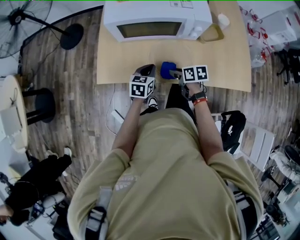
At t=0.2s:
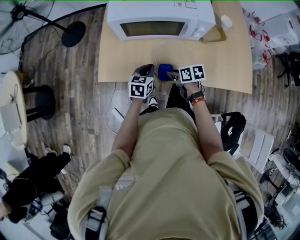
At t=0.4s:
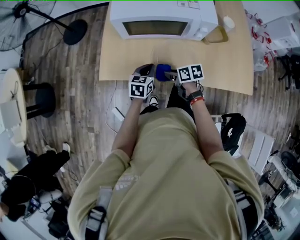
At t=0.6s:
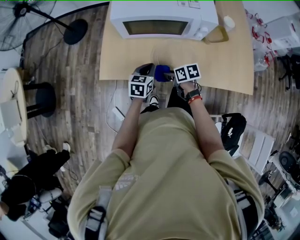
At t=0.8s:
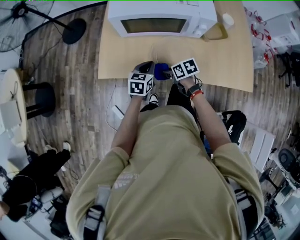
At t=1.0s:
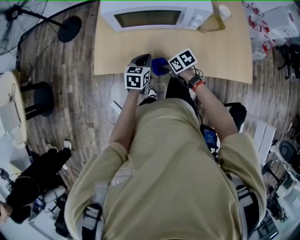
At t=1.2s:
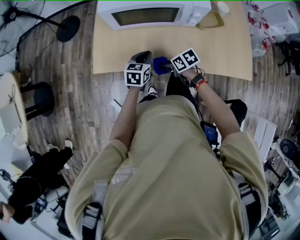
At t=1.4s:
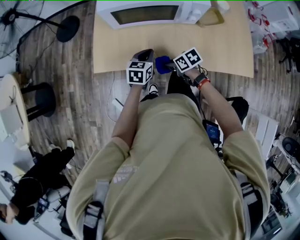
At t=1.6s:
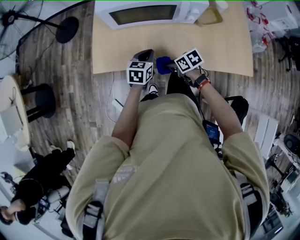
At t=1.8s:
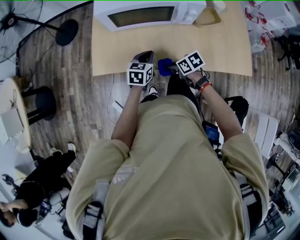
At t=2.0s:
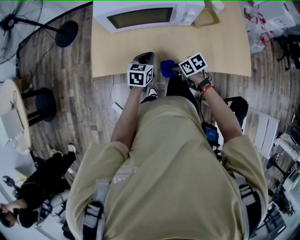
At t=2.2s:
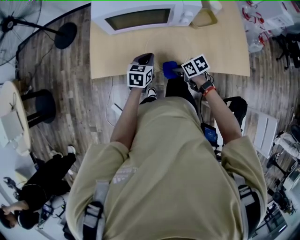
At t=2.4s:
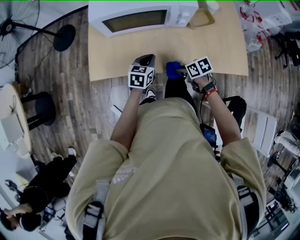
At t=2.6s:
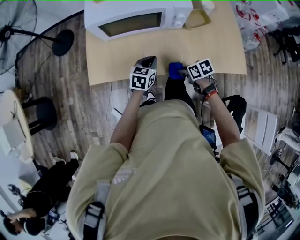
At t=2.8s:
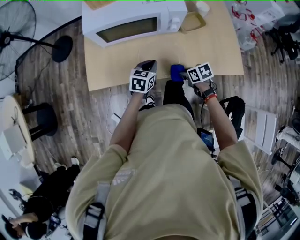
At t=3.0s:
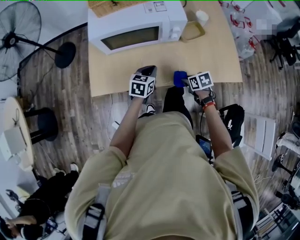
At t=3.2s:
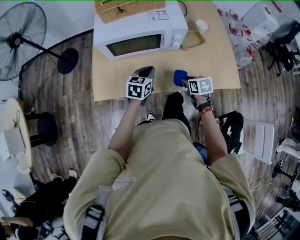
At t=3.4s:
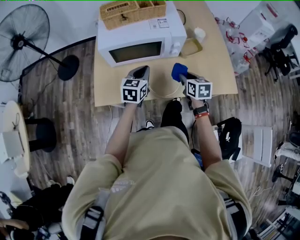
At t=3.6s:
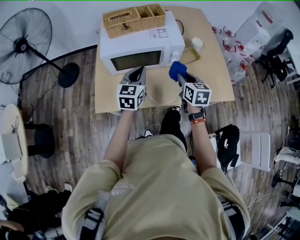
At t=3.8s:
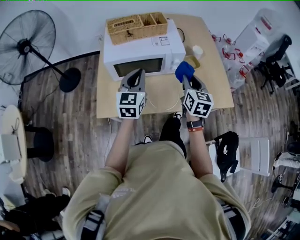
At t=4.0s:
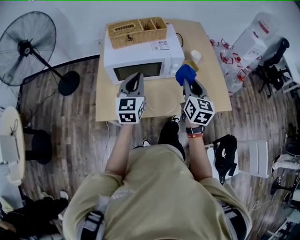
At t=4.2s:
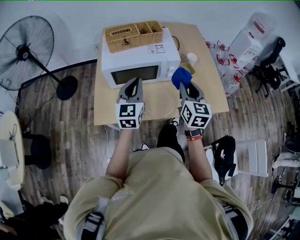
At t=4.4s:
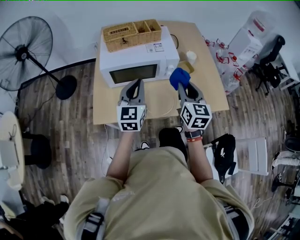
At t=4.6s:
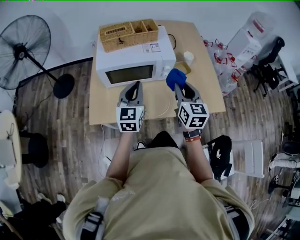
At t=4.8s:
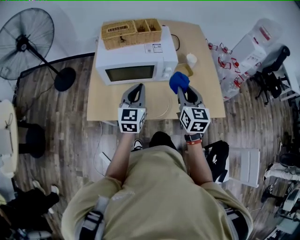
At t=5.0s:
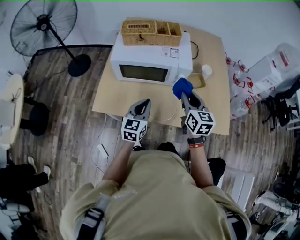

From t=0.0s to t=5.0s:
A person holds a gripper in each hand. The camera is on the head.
From t=0.0s to t=1.6s: The right gripper changes place by some 5 cm, and rotates about 20 degrees.
From t=1.6s to t=3.4s: Both grippers travel together upward, roughly 15 cm. The right gripper swivels roughly 50 degrees.
From t=3.4s to t=5.0s: The right gripper heads upward, covering about 15 cm, and turns by some 20 degrees. Meanwhile the left gripper is displaced backward by approximately 5 cm, and travels upward and back again, roughly 15 cm each way.

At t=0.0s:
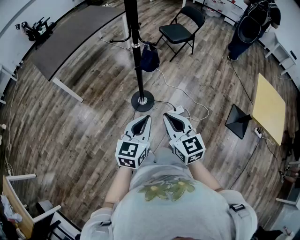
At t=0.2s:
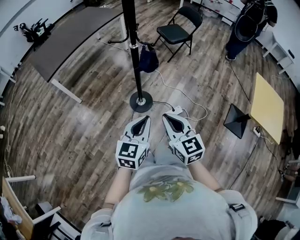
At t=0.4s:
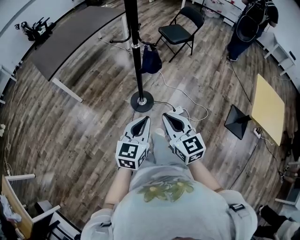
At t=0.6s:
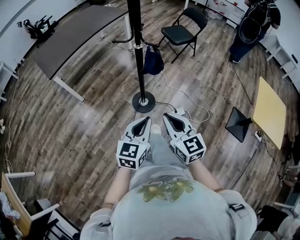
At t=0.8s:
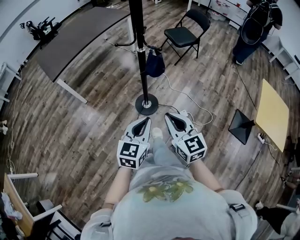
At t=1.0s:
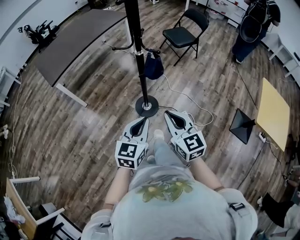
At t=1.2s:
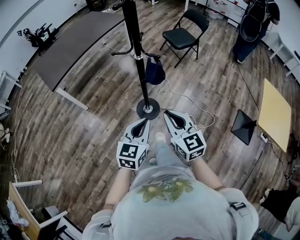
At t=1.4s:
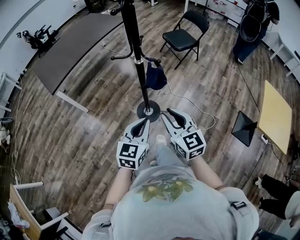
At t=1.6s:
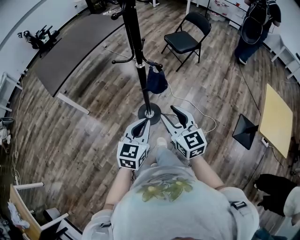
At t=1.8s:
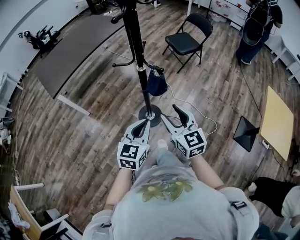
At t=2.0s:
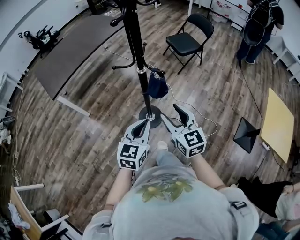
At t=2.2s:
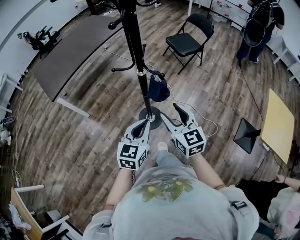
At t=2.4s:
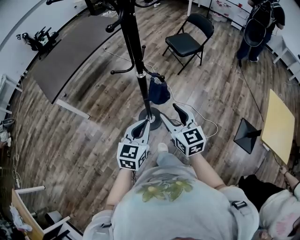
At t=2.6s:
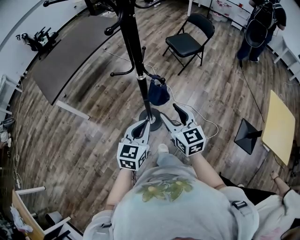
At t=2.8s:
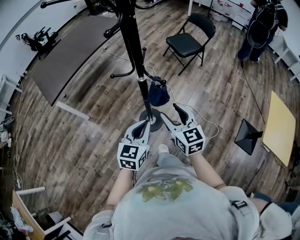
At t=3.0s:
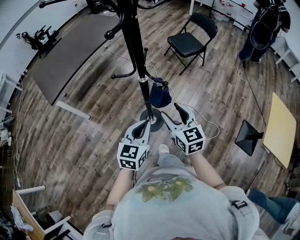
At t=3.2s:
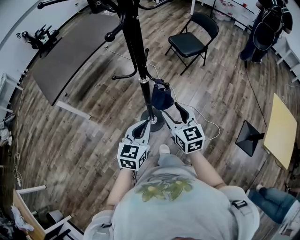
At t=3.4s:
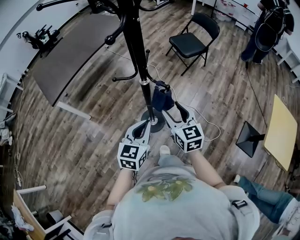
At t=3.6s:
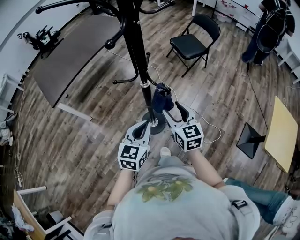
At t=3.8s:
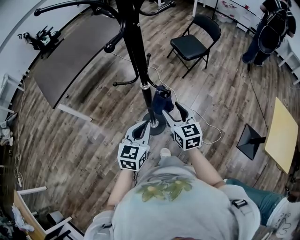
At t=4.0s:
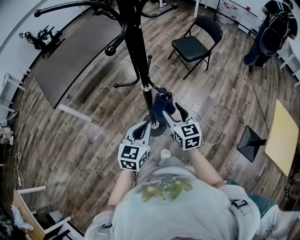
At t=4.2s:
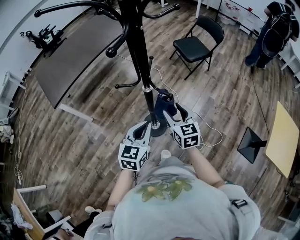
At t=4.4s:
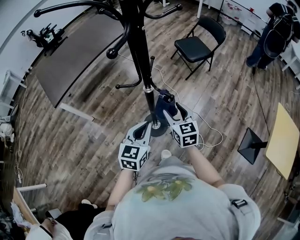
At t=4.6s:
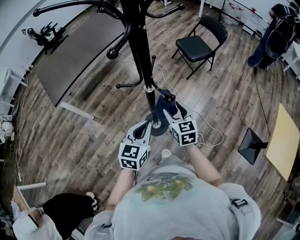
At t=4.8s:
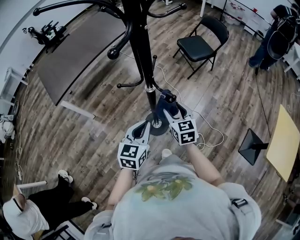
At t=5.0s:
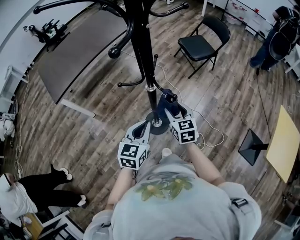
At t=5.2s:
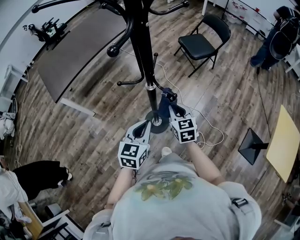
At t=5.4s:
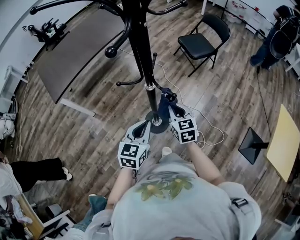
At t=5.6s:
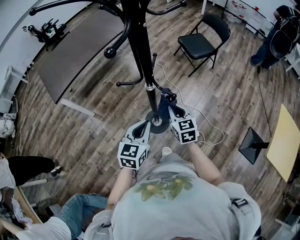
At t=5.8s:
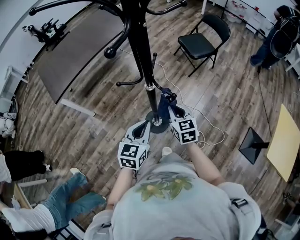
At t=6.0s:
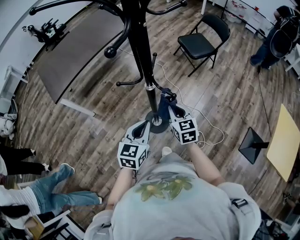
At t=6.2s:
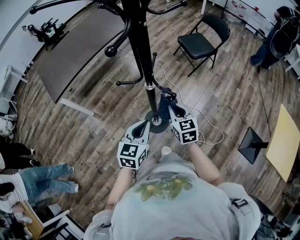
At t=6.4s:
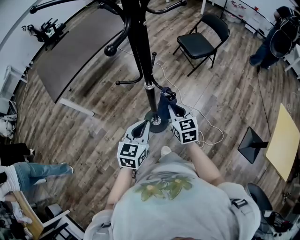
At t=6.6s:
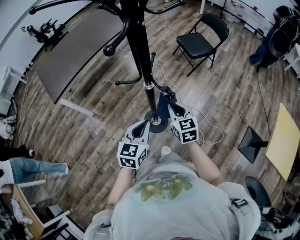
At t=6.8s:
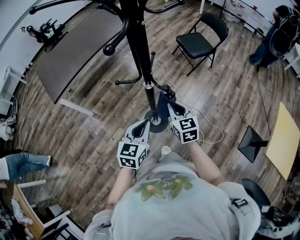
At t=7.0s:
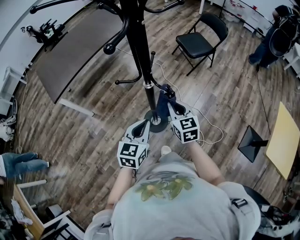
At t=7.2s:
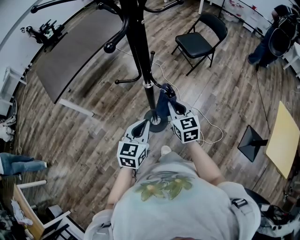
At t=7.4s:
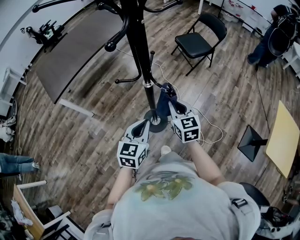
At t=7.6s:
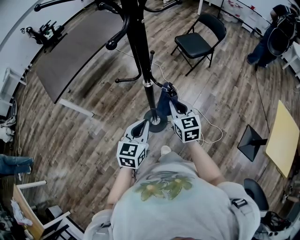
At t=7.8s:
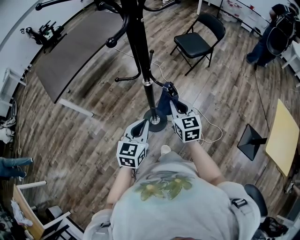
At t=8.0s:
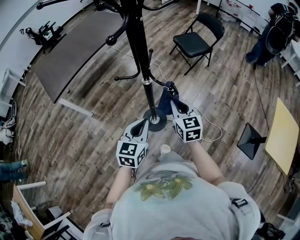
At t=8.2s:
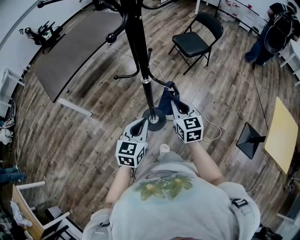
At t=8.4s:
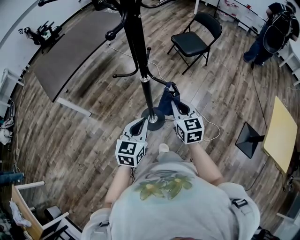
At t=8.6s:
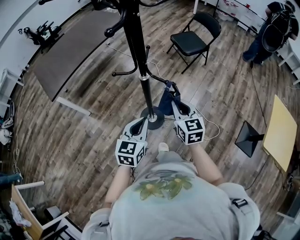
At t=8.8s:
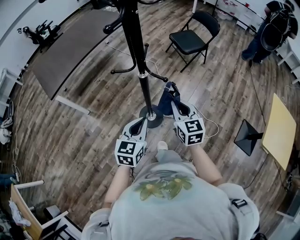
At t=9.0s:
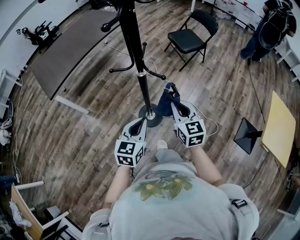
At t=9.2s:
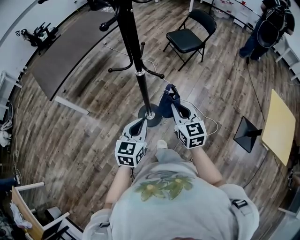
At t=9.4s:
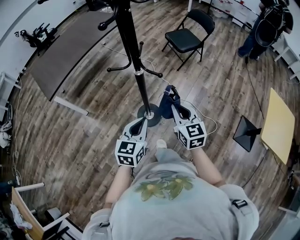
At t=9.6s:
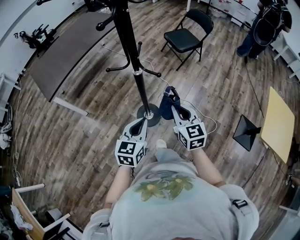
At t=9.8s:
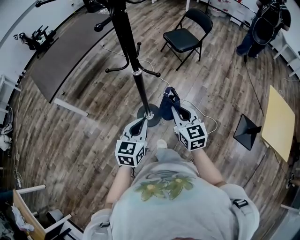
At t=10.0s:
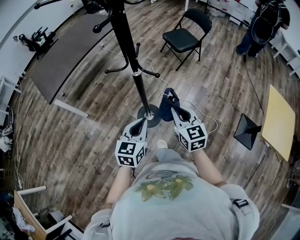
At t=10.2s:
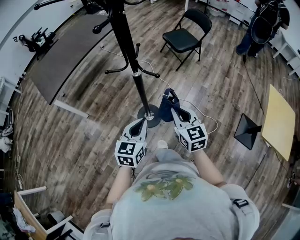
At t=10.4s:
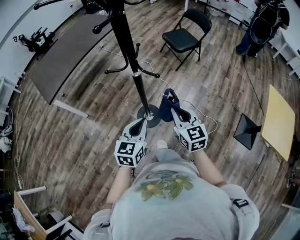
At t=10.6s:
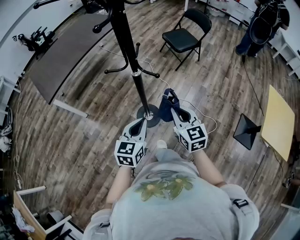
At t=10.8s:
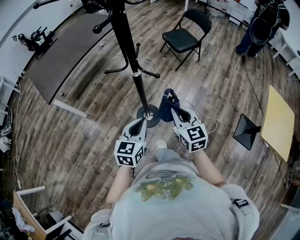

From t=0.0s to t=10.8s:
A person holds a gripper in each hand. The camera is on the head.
From t=0.0s to t=1.6s: Both grippers travel together forward, approximately 15 cm. The right gripper opens.
From t=1.6s to t=3.0s: The grippers both shift forward by about 10 cm.
From t=3.0s to t=4.6s: The right gripper is displaced forward and downward by about 10 cm; the left gripper heads forward, covering about 5 cm.
From t=4.6s to t=6.2s: The right gripper closes its fingers.
From t=6.2s to t=7.8s: There are only small adjustments of the grippers.
From t=7.8s to t=9.2s: The right gripper moves backward, roughly 10 cm. The left gripper shifts by approximately 5 cm.
From t=9.2s to t=10.8s: The grippers make only small movements.

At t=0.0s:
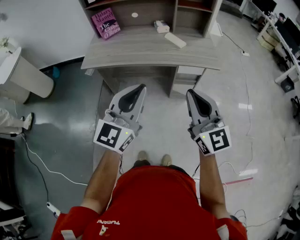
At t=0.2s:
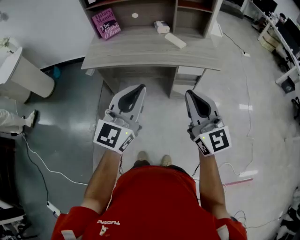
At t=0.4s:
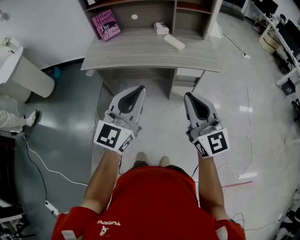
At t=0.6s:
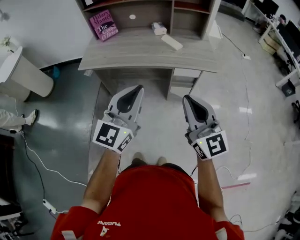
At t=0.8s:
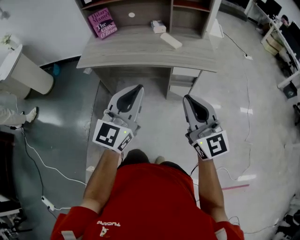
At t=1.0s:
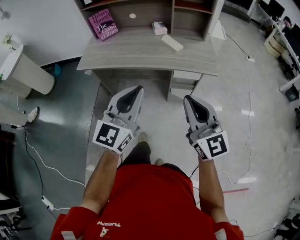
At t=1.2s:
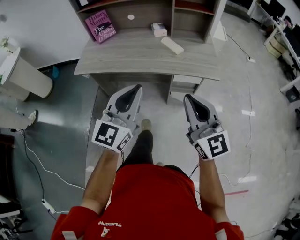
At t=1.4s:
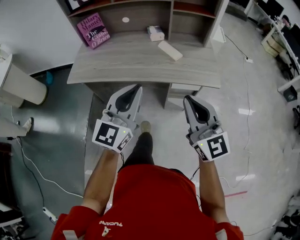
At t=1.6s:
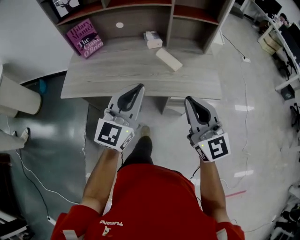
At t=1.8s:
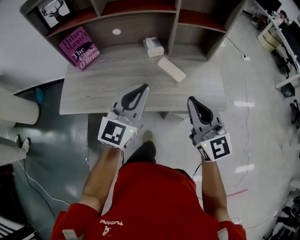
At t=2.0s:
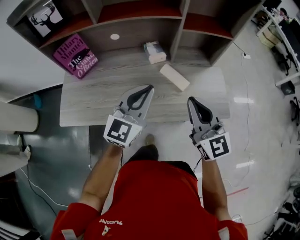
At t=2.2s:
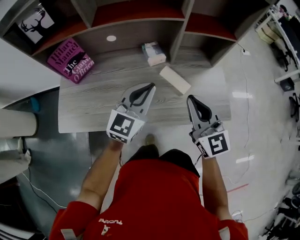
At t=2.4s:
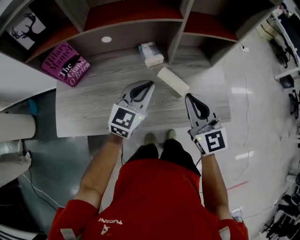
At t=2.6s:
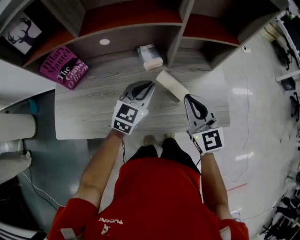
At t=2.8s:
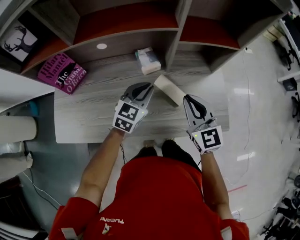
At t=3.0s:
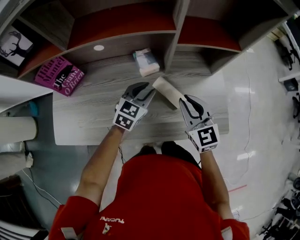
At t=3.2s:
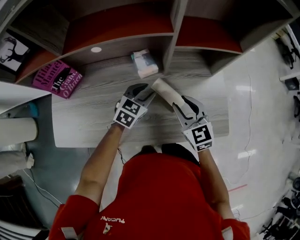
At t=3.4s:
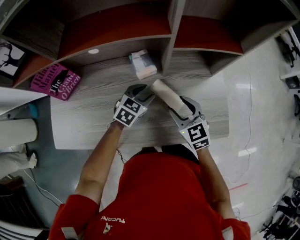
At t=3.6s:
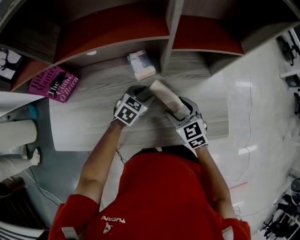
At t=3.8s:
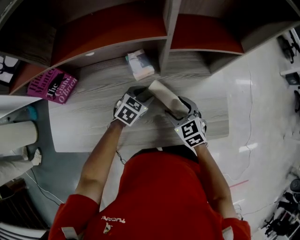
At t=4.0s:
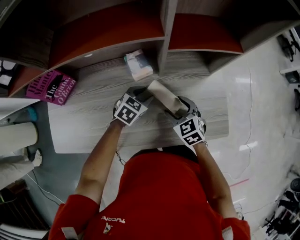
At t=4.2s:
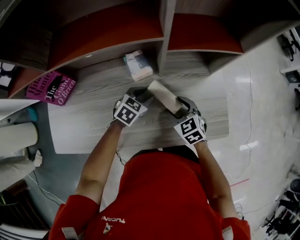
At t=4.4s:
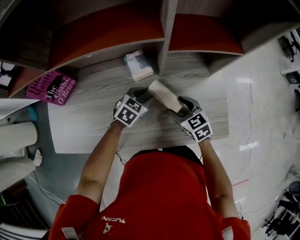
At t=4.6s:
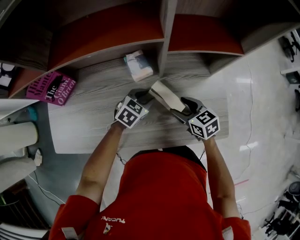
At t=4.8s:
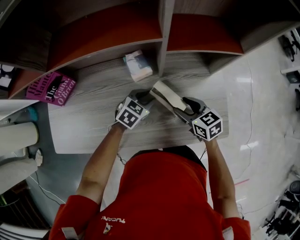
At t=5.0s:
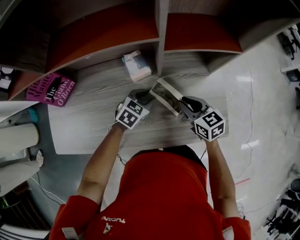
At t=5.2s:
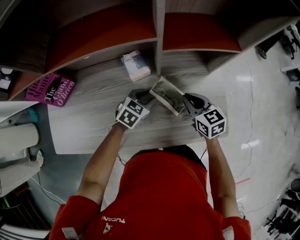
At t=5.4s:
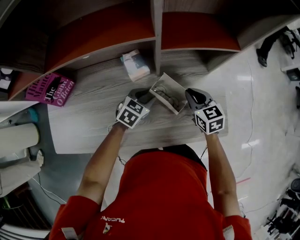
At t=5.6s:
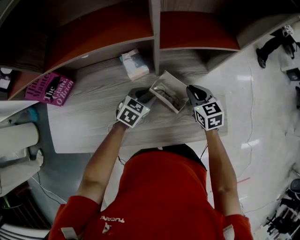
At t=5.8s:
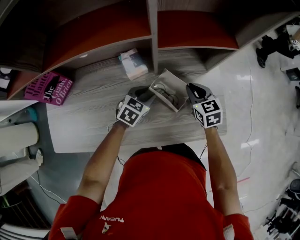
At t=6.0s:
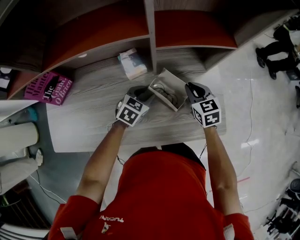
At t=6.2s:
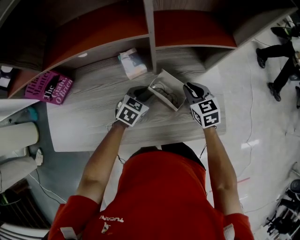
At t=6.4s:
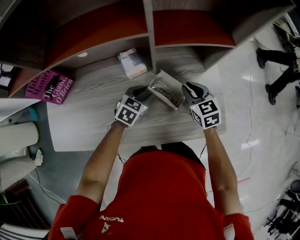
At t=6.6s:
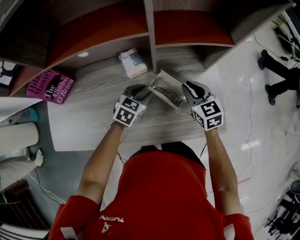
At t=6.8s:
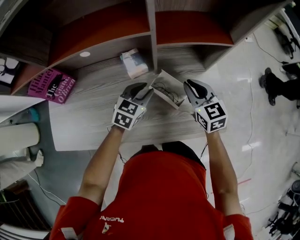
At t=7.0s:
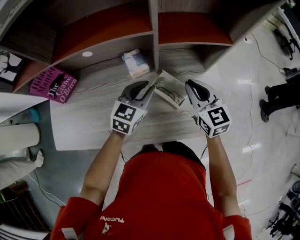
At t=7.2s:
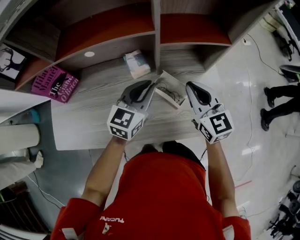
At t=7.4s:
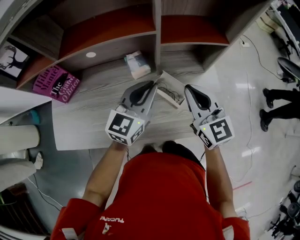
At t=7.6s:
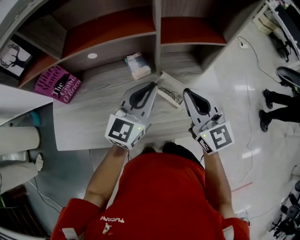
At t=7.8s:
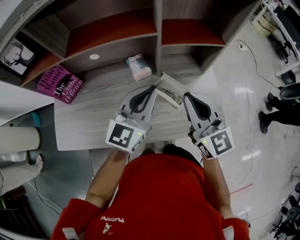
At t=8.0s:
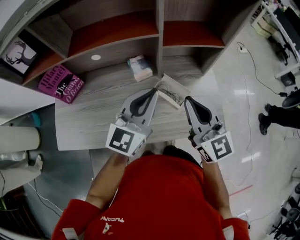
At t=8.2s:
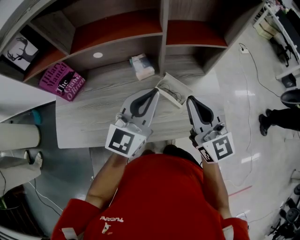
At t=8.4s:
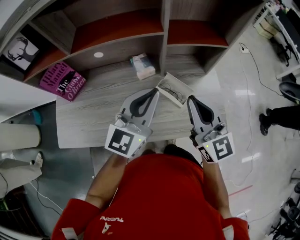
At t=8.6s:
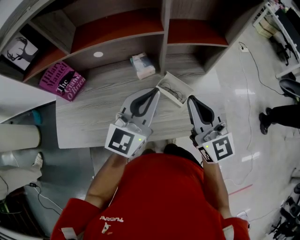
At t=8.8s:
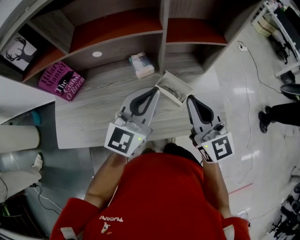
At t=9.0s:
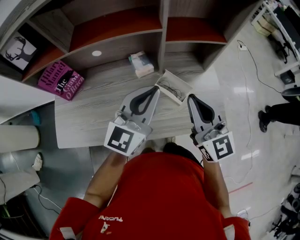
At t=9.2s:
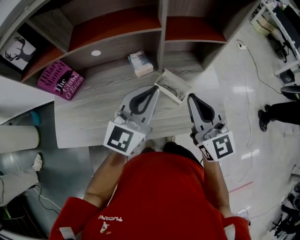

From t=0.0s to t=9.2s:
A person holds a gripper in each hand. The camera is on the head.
From t=0.0s to t=1.6s: The grippers both shift forward by about 25 cm.
From t=1.6s to t=3.0s: Both grippers travel together forward and downward, some 35 cm. The right gripper turns by approximately 20 degrees; the left gripper tilts its fingers about 30 degrees downward, and opens.
From t=3.0s to t=4.6s: The grippers both shift downward by approximately 10 cm. The left gripper turns by approximately 20 degrees. The right gripper swivels about 30 degrees, and opens its fingers.
From t=4.6s to t=6.2s: The right gripper heads forward and to the right, covering some 10 cm, rotates about 20 degrees, and closes its fingers.
From t=6.2s to t=7.6s: The left gripper heads upward, covering roughly 25 cm, angles its fingers upward, by about 40 degrees, and closes up, while the right gripper is displaced upward and backward by roughly 25 cm, and tilts its fingers about 30 degrees upward.
From t=7.6s to t=9.2s: The left gripper moves roughly 5 cm. Meanwhile the right gripper moves about 5 cm.
